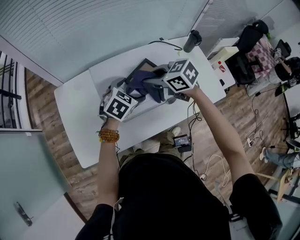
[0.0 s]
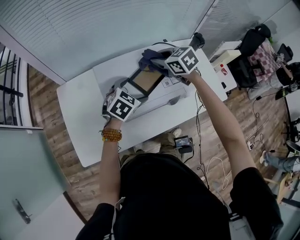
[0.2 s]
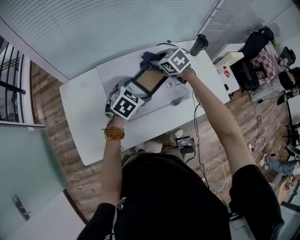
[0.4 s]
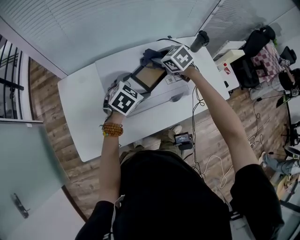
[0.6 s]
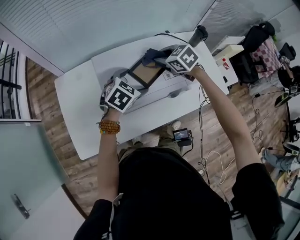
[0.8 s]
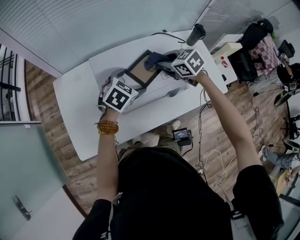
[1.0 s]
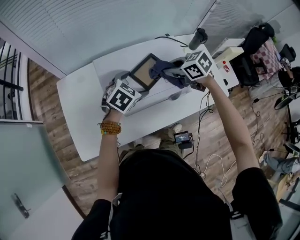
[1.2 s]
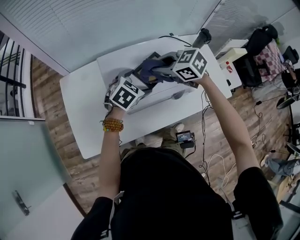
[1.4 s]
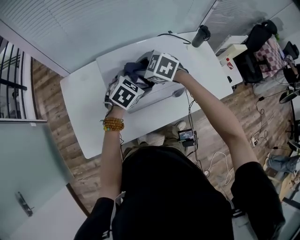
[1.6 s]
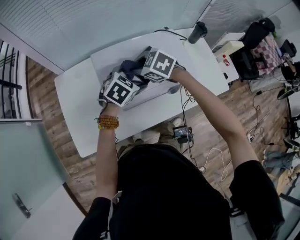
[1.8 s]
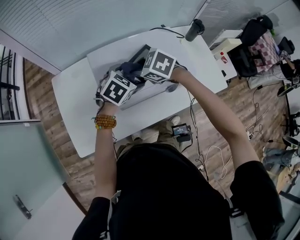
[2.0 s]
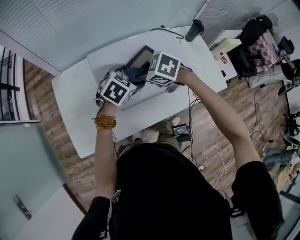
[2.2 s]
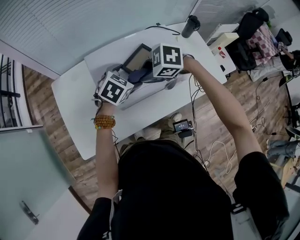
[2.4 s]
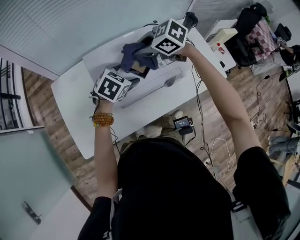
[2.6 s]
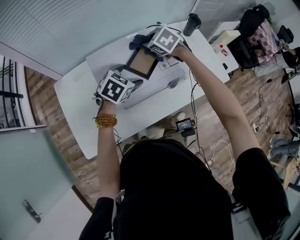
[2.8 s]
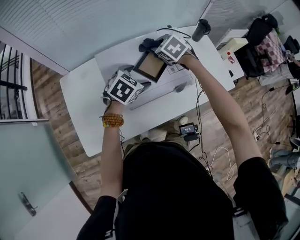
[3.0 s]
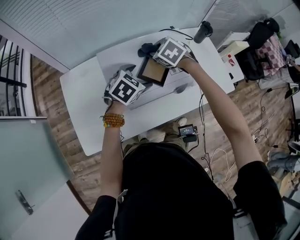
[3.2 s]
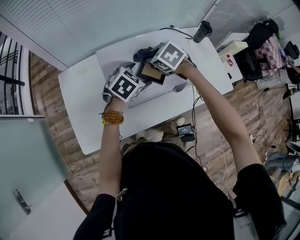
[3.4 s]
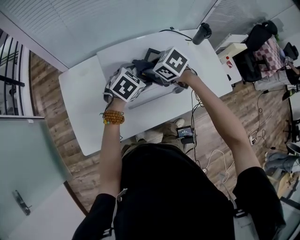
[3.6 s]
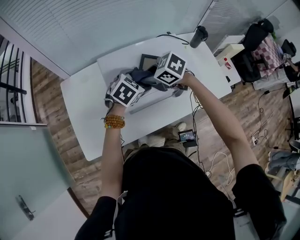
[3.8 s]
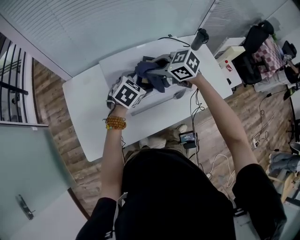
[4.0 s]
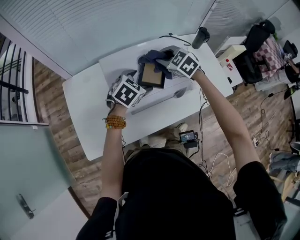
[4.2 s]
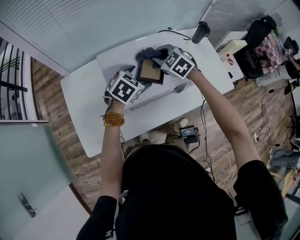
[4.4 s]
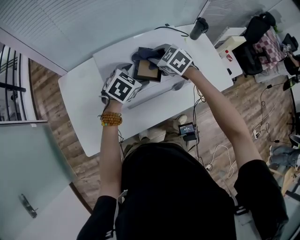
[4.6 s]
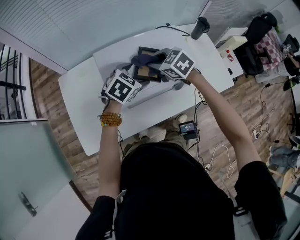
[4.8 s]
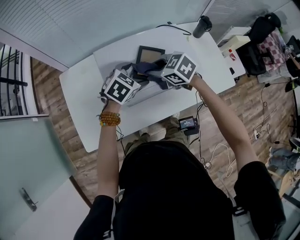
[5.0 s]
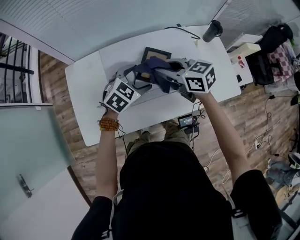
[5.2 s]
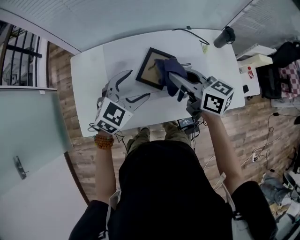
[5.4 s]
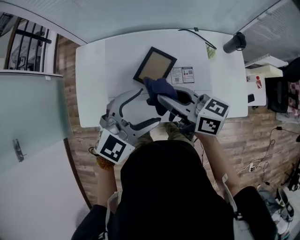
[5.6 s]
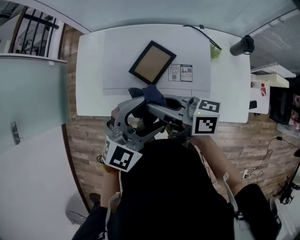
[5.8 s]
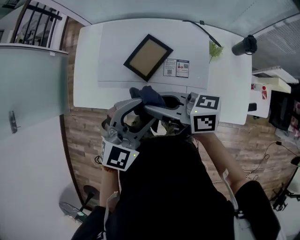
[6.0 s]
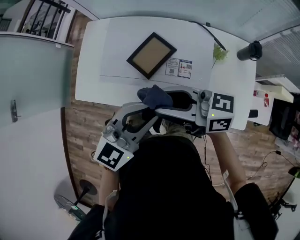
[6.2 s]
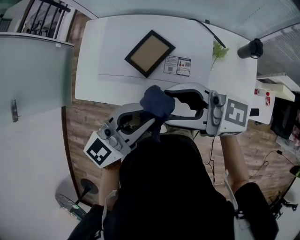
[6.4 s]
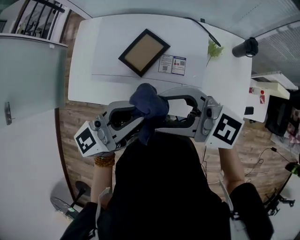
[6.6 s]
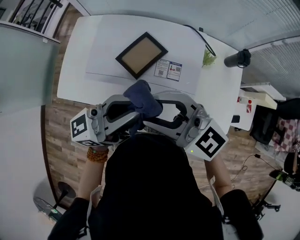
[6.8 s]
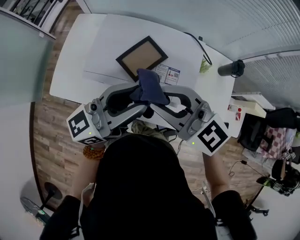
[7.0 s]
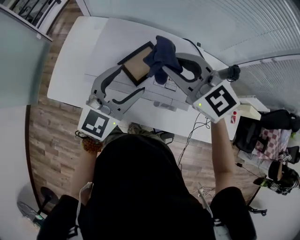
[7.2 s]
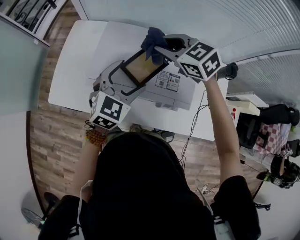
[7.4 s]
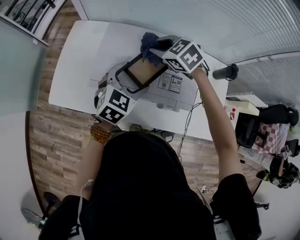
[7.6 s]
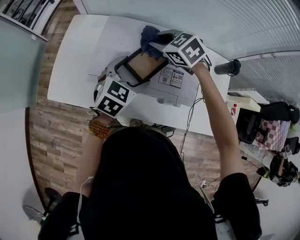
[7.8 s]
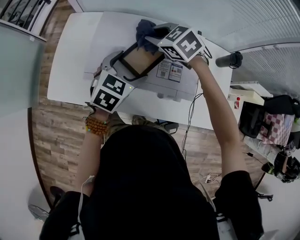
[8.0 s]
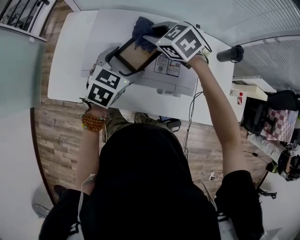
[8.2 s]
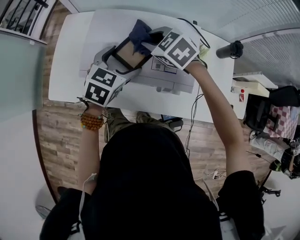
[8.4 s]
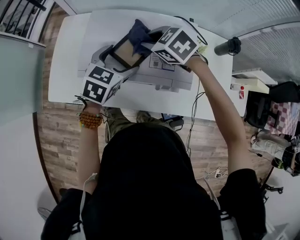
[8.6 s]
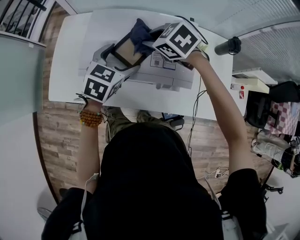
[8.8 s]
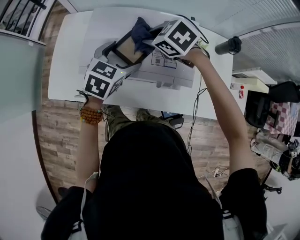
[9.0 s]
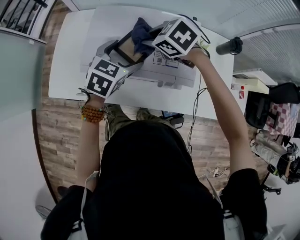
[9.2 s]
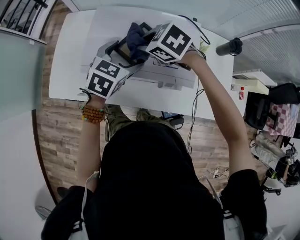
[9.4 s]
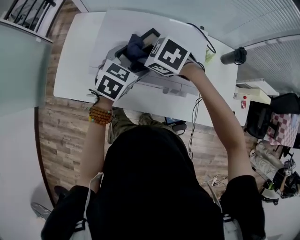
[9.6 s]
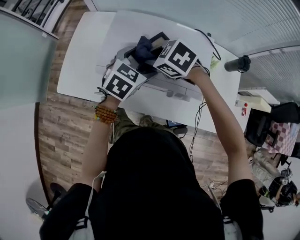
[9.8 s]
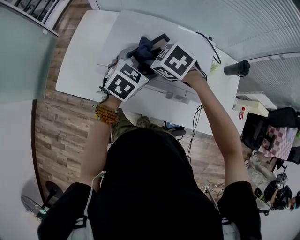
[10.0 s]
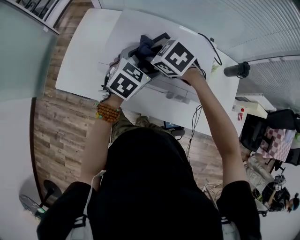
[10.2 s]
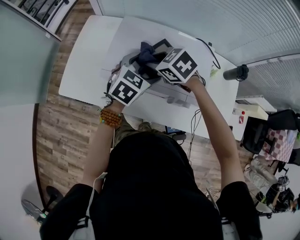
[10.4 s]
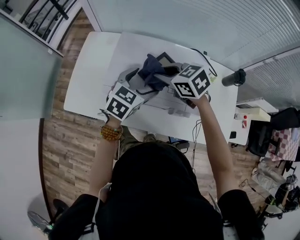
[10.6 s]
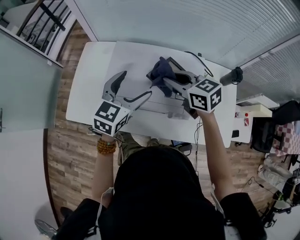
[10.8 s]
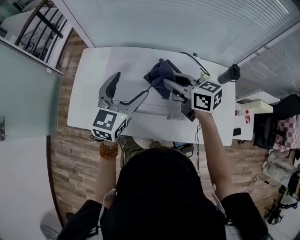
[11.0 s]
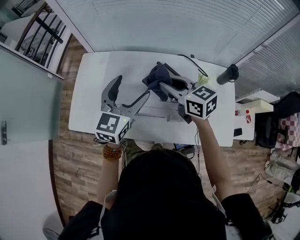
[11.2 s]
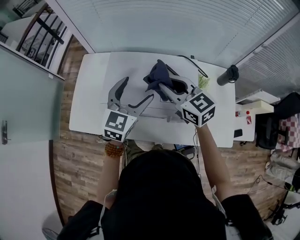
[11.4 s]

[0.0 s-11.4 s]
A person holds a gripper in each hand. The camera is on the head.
0.0 to 1.4 s: The right gripper reaches roughly 10 cm forward, then returns.
1.4 to 2.8 s: The right gripper moves up and down over approximately 5 cm, changing direction 2 times, and rotates some 20 degrees.
4.2 to 5.6 s: The right gripper shifts approximately 15 cm backward and upward, and points its fingers about 40 degrees further upward; the left gripper heads upward, backward and to the right, covering approximately 20 cm, and swivels about 20 degrees.
5.6 to 7.2 s: The left gripper travels upward and back again, roughly 5 cm each way, swivels about 40 degrees, and closes, then opens again; the right gripper ends up approximately 10 cm from where it was, rotates around the line of its fingers by approximately 50 degrees, counterclockwise from behind, and opens, then closes again.
7.2 to 8.6 s: The right gripper shifts approximately 15 cm downward and forward, and changes its angle by approximately 30 degrees. Meanwhile the left gripper shifts roughly 10 cm downward, and changes its angle by roughly 30 degrees.
8.6 to 10.0 s: The right gripper is displaced to the left by some 10 cm.
10.0 to 11.4 s: The right gripper is displaced to the right and upward by approximately 15 cm, and points its fingers approximately 40 degrees further upward; the left gripper shifts approximately 10 cm upward, and turns by about 30 degrees.

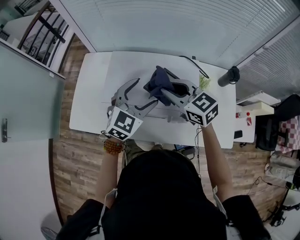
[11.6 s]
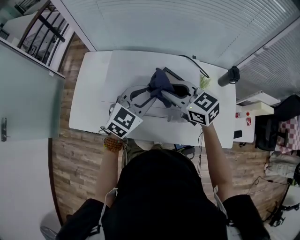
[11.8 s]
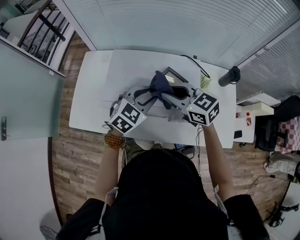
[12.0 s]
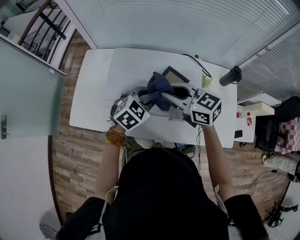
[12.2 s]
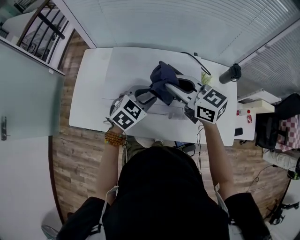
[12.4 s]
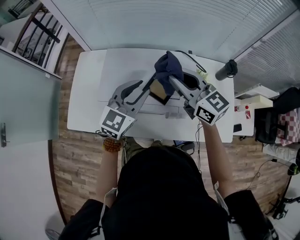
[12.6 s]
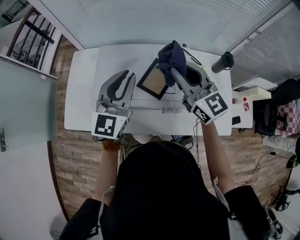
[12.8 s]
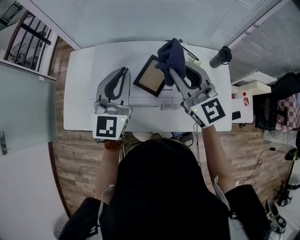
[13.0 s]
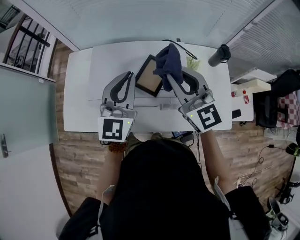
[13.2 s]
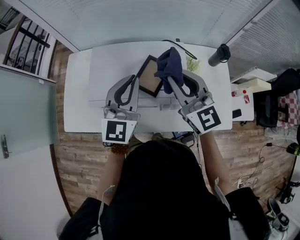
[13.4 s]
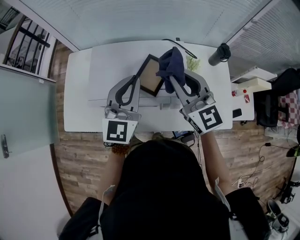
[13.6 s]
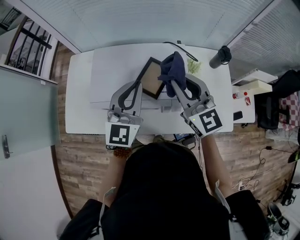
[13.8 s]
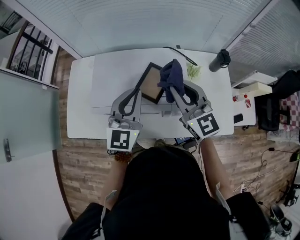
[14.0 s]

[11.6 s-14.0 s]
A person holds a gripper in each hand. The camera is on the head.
11.6 to 12.8 s: The left gripper travels upward by roughly 10 cm, turns by some 30 degrees, and closes its fingers, while the right gripper heads to the right and upward, covering roughly 10 cm, and turns by about 30 degrees.
12.8 to 14.0 s: The left gripper moves approximately 5 cm. Meanwhile the right gripper moves about 5 cm.

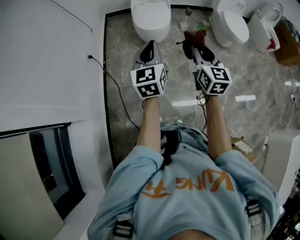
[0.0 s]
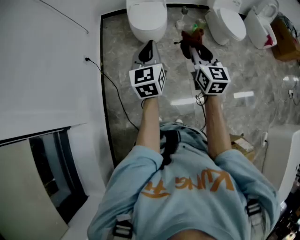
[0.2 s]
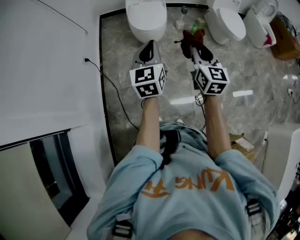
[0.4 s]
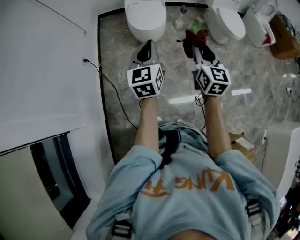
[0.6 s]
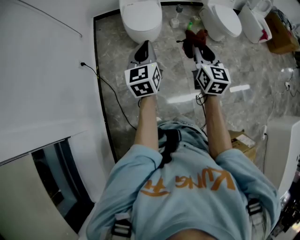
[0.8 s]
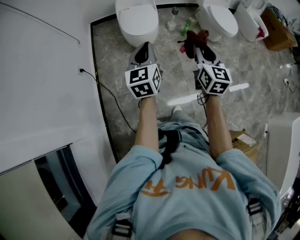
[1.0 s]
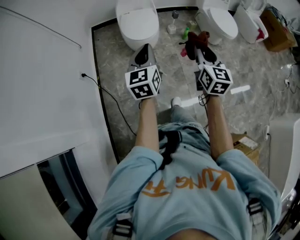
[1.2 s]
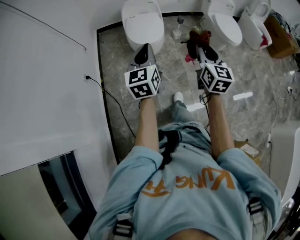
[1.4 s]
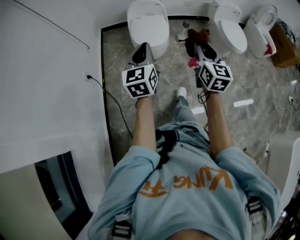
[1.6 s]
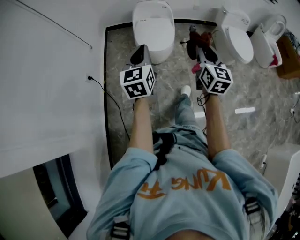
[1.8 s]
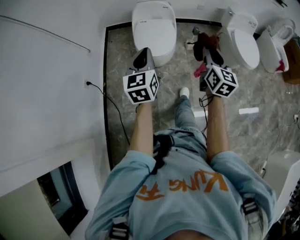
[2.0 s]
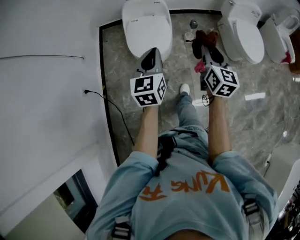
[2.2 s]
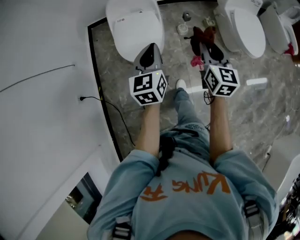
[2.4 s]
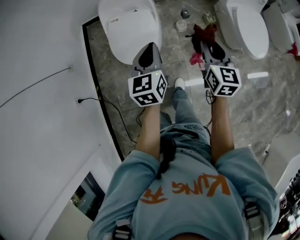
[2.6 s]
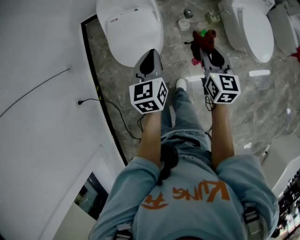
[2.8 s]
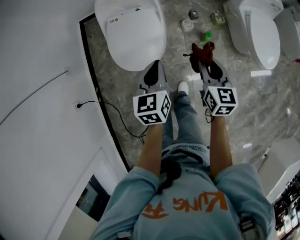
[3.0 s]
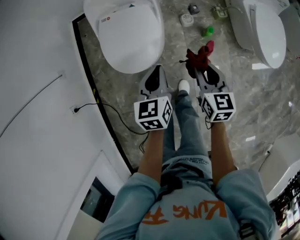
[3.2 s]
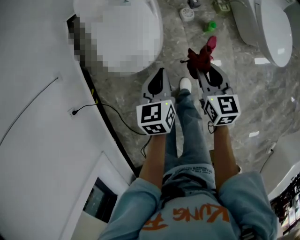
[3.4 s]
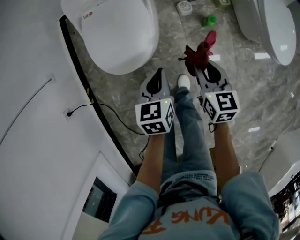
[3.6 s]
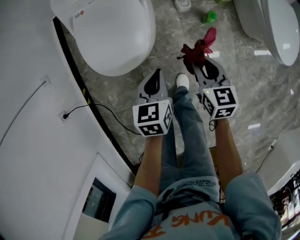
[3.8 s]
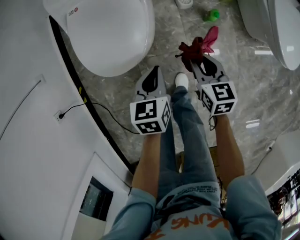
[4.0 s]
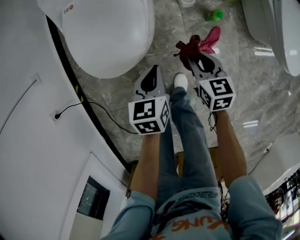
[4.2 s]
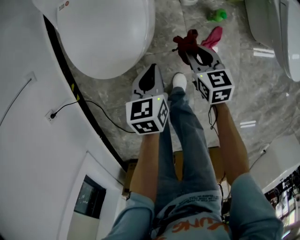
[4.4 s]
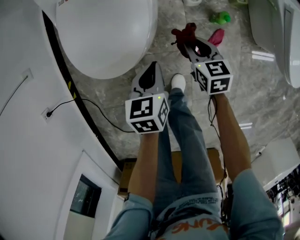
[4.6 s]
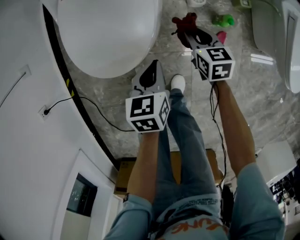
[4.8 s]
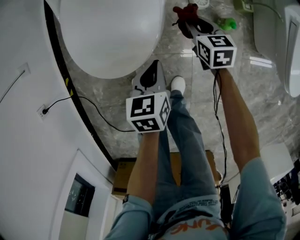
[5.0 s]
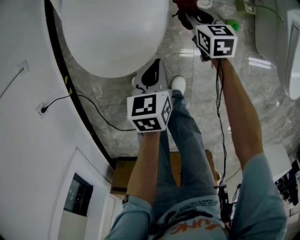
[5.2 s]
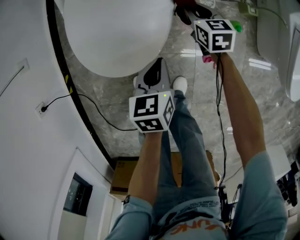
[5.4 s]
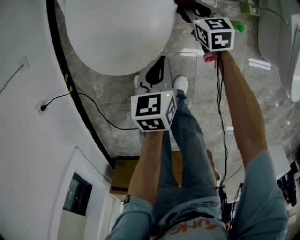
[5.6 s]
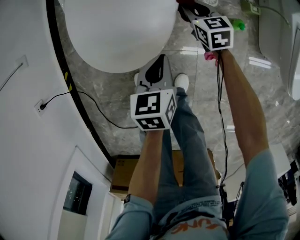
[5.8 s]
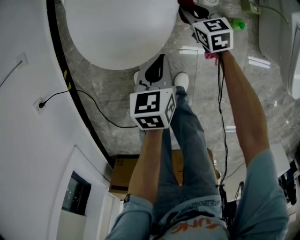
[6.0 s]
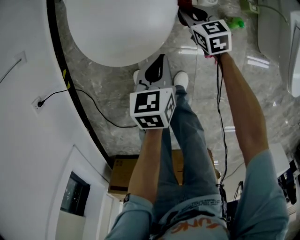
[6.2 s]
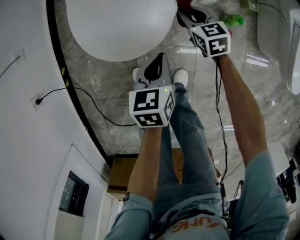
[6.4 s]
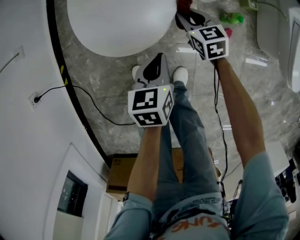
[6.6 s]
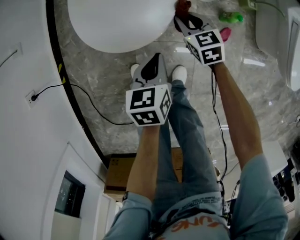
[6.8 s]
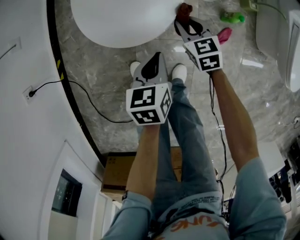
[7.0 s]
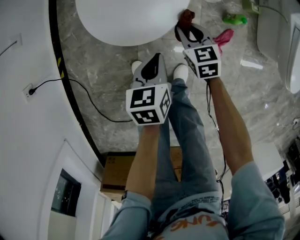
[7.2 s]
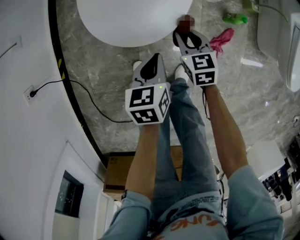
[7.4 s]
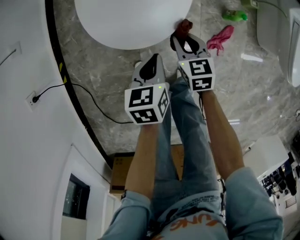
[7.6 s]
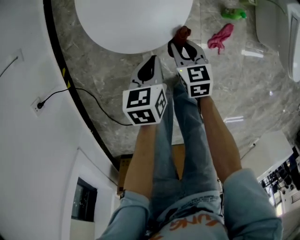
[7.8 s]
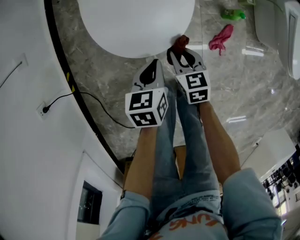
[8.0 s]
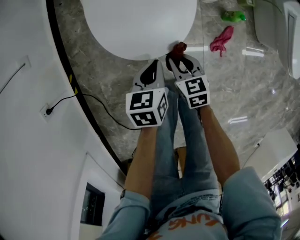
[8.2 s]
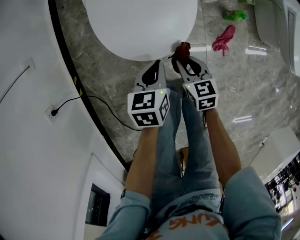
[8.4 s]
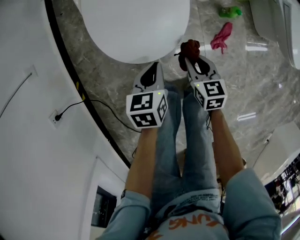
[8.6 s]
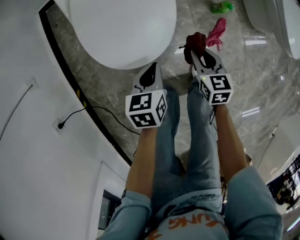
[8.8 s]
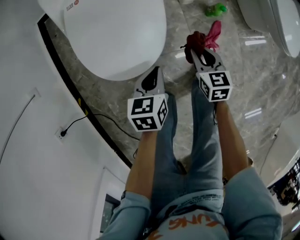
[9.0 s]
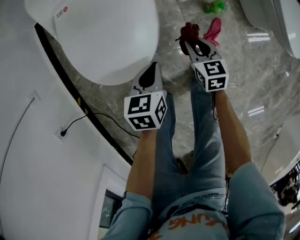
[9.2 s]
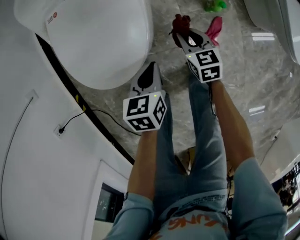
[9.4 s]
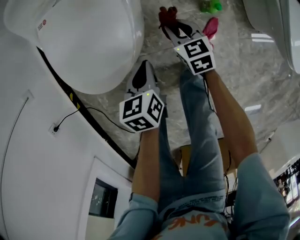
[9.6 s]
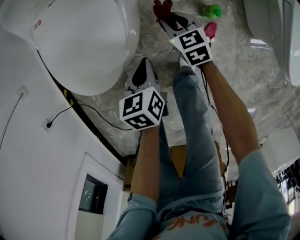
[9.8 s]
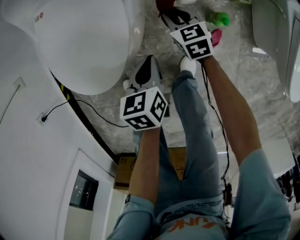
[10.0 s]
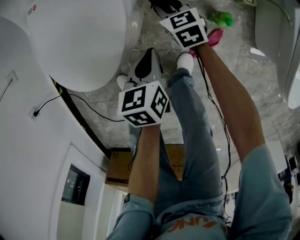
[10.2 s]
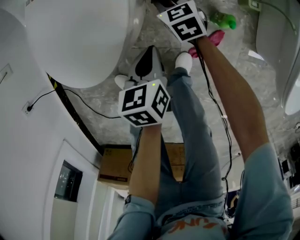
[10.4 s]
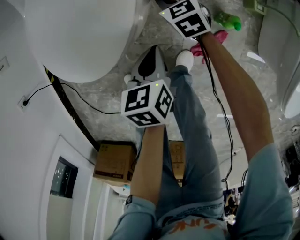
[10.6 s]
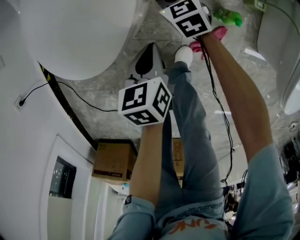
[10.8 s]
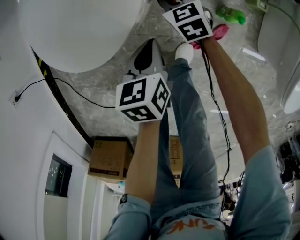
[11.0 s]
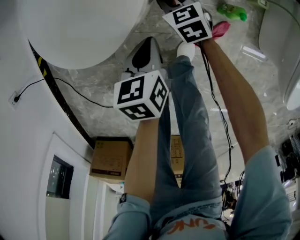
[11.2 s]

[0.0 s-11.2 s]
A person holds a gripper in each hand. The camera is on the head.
0.0 to 1.6 s: The two grippers go some 10 cm forward.
1.6 to 3.2 s: The pair of grippers is taken forward, some 50 cm. Both grippers move downward, roughly 30 cm. The left gripper angles its fingers downward, by approximately 30 degrees; the right gripper rotates roughly 30 degrees.
3.2 to 4.8 s: The left gripper is displaced downward by some 25 cm, while the right gripper shifts some 35 cm downward and forward.
4.8 to 6.4 s: The right gripper moves to the left, roughly 10 cm, and moves about 10 cm forward and comes back. The left gripper shifts by some 5 cm.
6.4 to 8.0 s: The left gripper moves to the left, some 10 cm, while the right gripper is displaced backward and to the left by some 20 cm.
8.0 to 9.6 s: The two grippers go some 20 cm to the right and forward.
9.6 to 11.2 s: The right gripper goes some 10 cm downward and to the left, and rotates roughly 30 degrees; the left gripper shifts about 5 cm downward.
